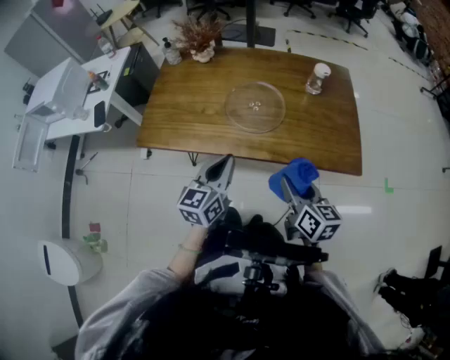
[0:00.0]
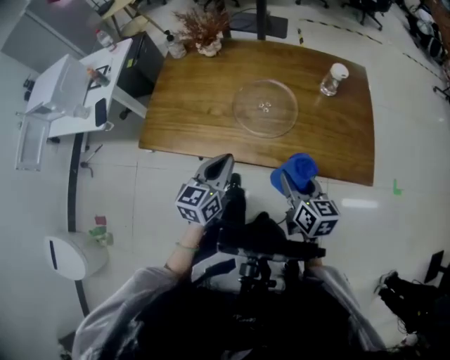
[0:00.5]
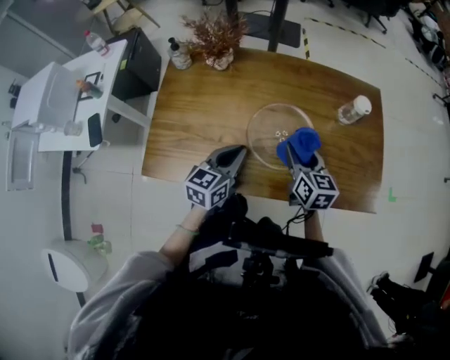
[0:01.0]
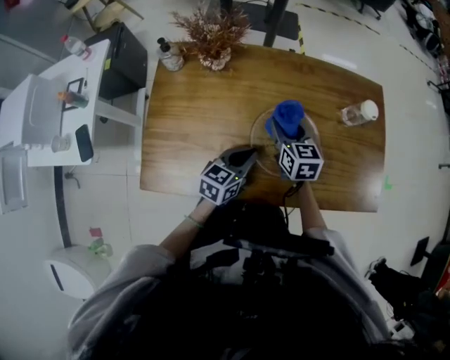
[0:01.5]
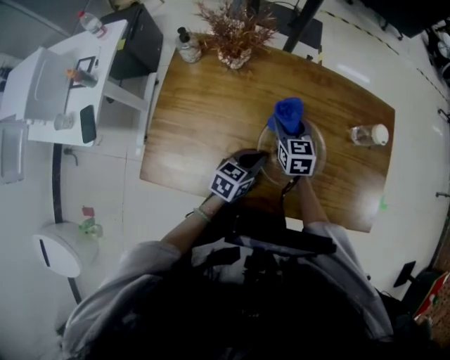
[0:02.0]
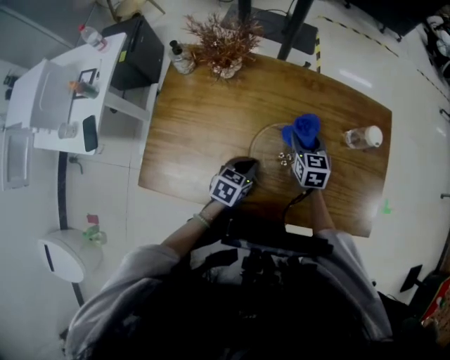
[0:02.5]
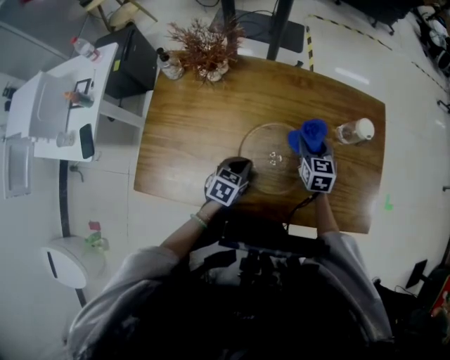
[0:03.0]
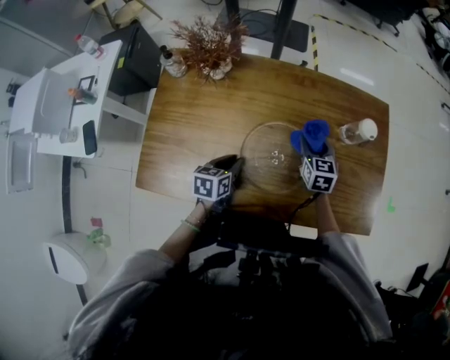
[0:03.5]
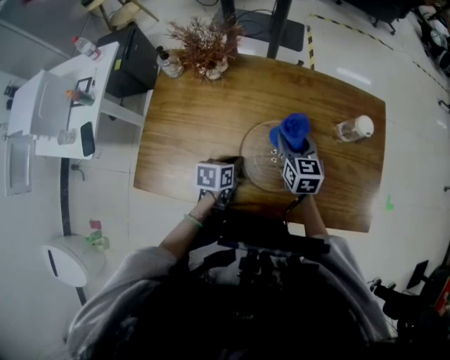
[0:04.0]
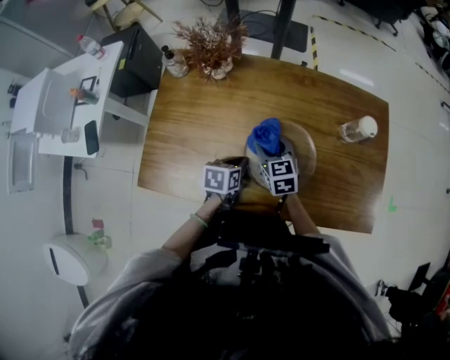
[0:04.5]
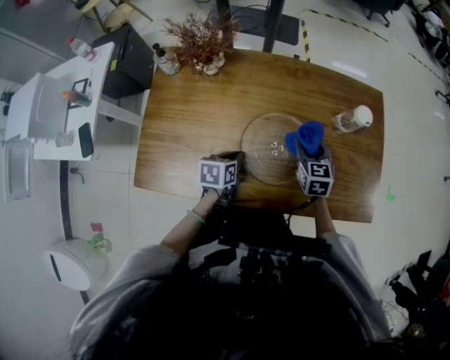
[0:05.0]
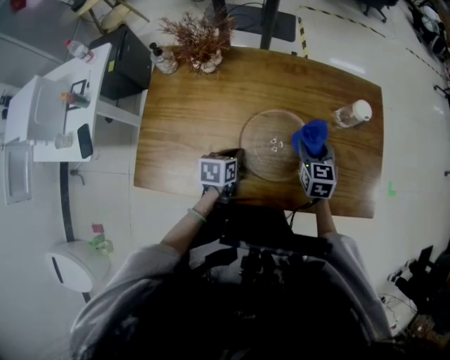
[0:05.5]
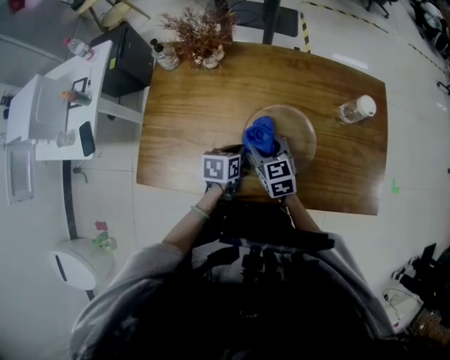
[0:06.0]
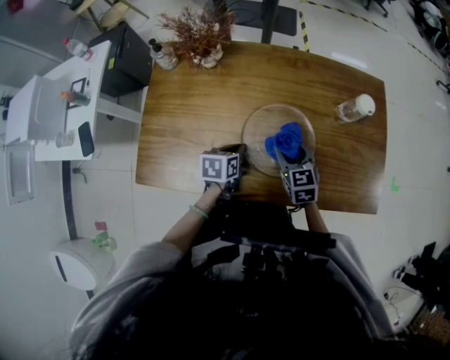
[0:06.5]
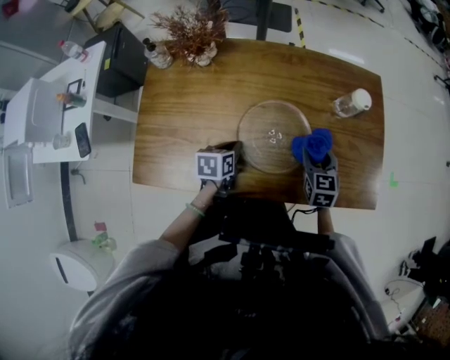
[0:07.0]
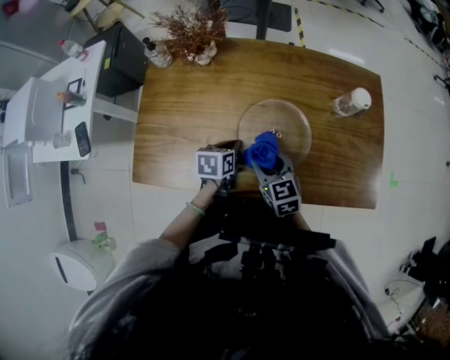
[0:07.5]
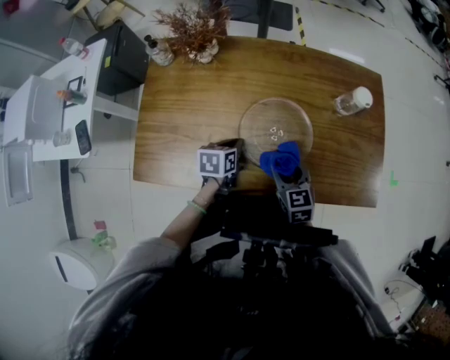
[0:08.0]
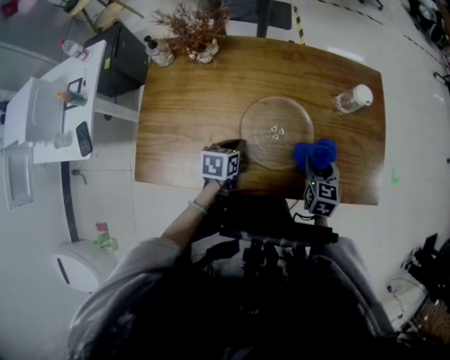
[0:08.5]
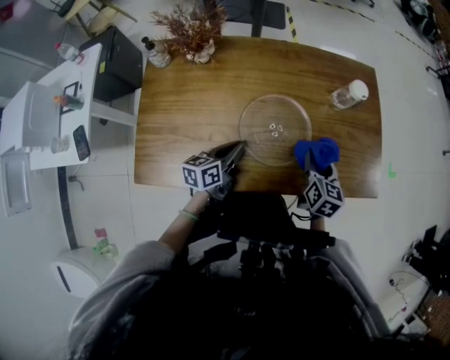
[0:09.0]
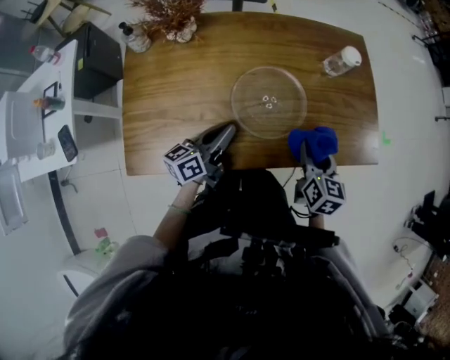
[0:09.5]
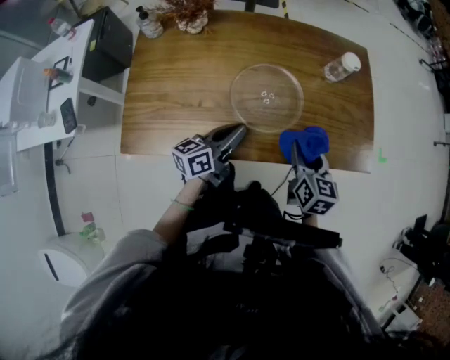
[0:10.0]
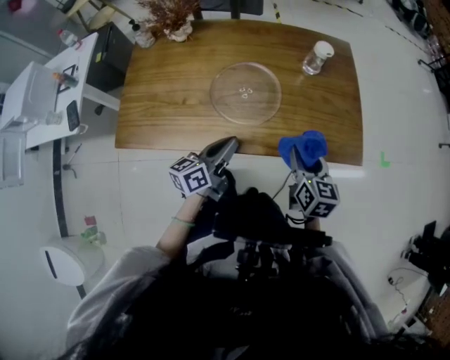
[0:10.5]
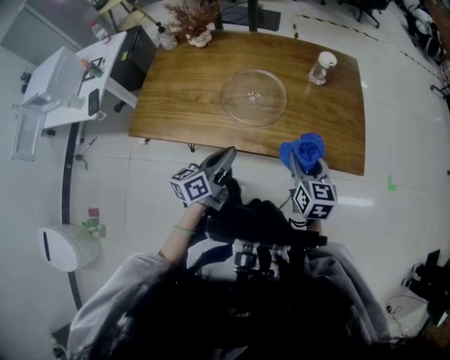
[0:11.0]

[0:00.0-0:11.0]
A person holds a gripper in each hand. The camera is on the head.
0:00.0 to 0:02.0: The left gripper heads forward and downward, covering approximately 30 cm, and rotates approximately 30 degrees; the right gripper shifts about 50 cm forward and to the left, and swivels approximately 30 degrees.
0:02.0 to 0:03.5: The left gripper swivels roughly 20 degrees, and opens up; the right gripper moves to the right, some 15 cm.
0:03.5 to 0:05.5: The right gripper heads backward, covering roughly 5 cm, and goes to the left and returns, about 15 cm each way.
0:05.5 to 0:07.5: The right gripper swings left and right, roughly 20 cm each way, with 2 reversals, and rotates roughly 20 degrees.
0:07.5 to 0:09.0: The right gripper goes approximately 15 cm to the right, and changes its angle by about 40 degrees. The left gripper moves roughly 5 cm, and swivels approximately 30 degrees.
0:09.0 to 0:11.0: The right gripper is displaced backward and to the right by roughly 20 cm, and turns by approximately 20 degrees. Meanwhile the left gripper goes roughly 25 cm backward, to the right and upward.

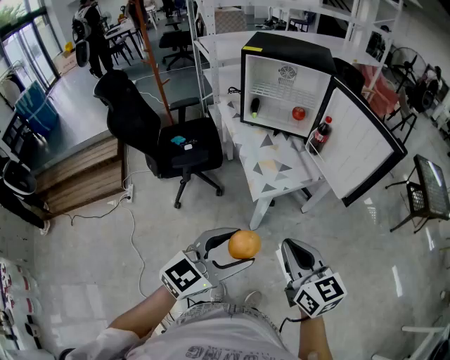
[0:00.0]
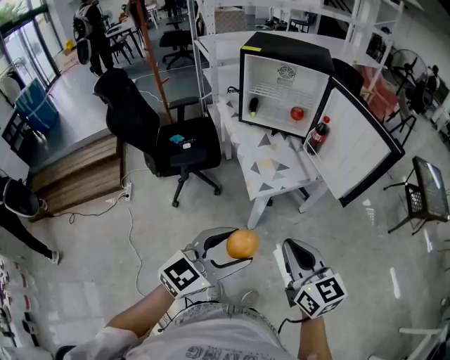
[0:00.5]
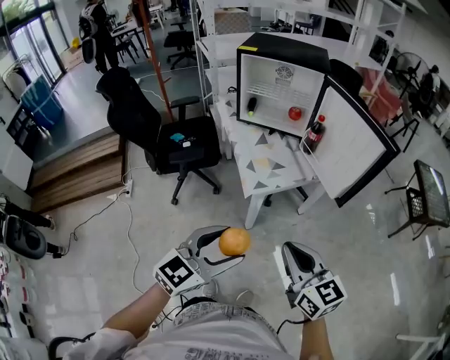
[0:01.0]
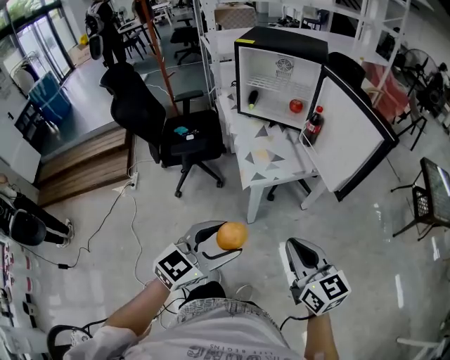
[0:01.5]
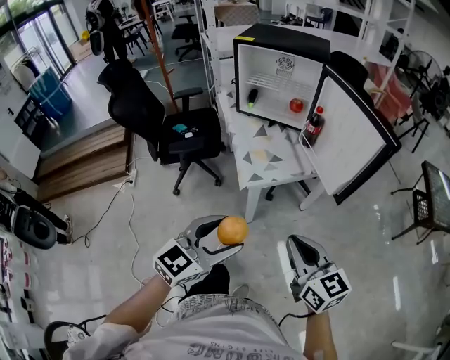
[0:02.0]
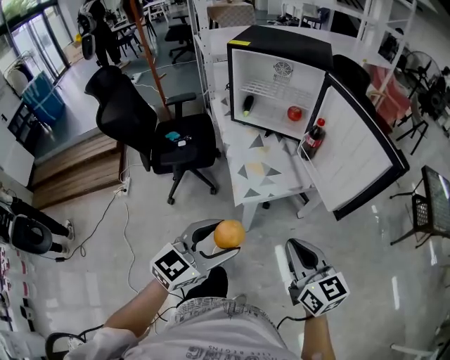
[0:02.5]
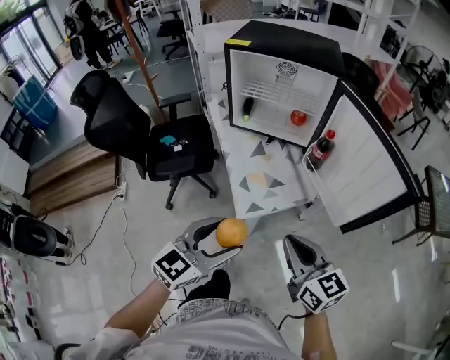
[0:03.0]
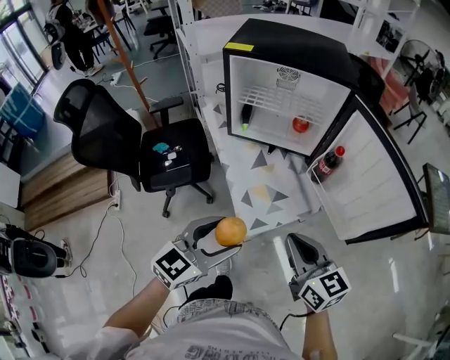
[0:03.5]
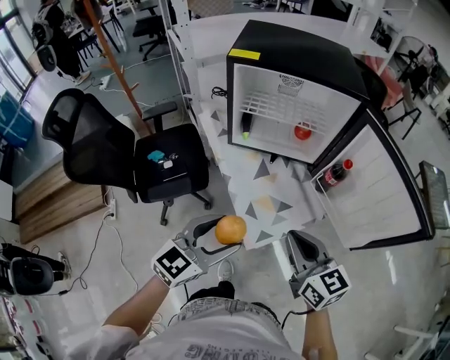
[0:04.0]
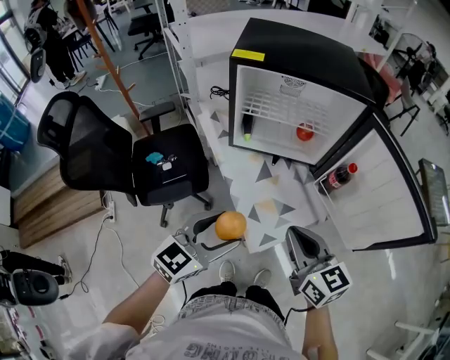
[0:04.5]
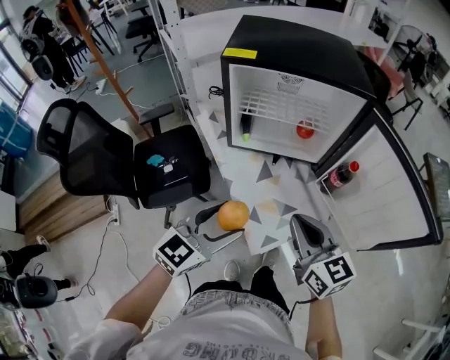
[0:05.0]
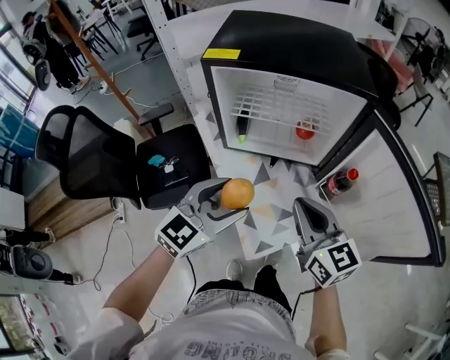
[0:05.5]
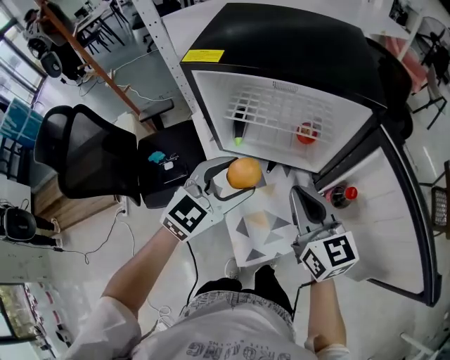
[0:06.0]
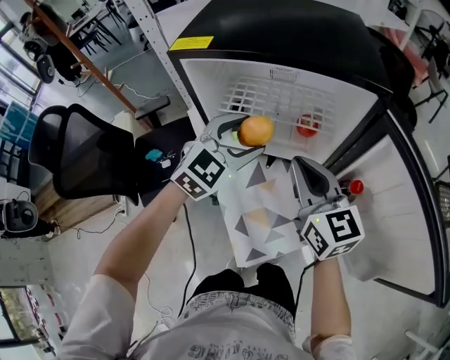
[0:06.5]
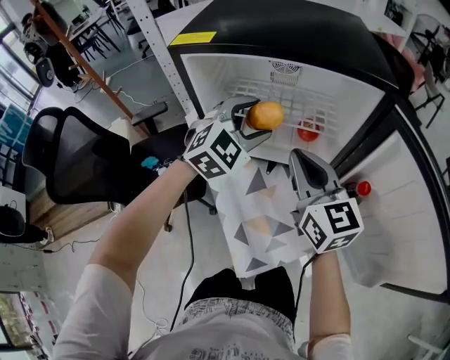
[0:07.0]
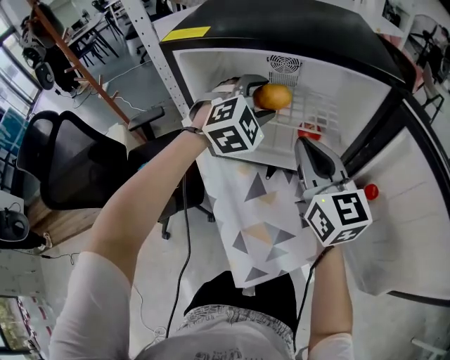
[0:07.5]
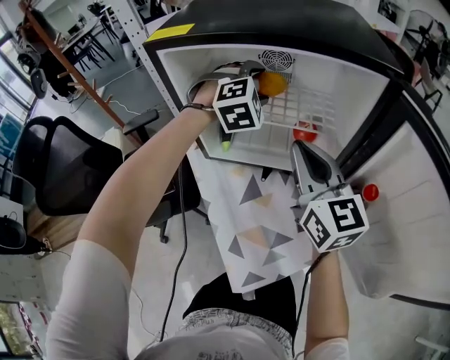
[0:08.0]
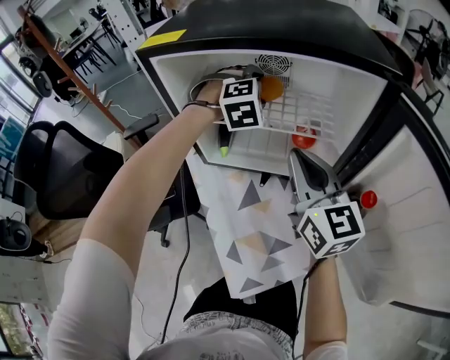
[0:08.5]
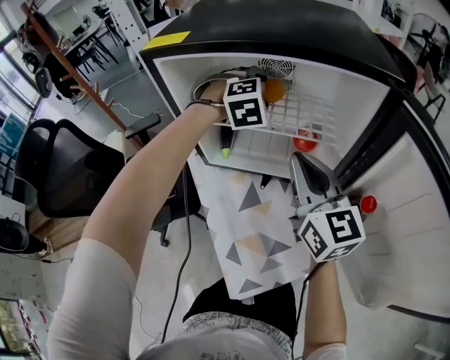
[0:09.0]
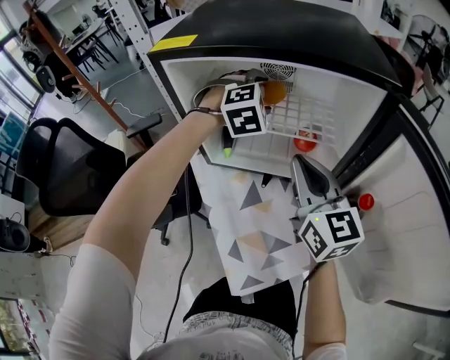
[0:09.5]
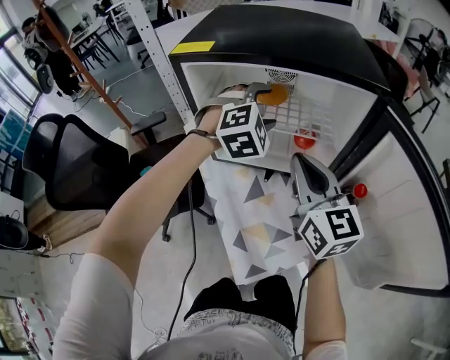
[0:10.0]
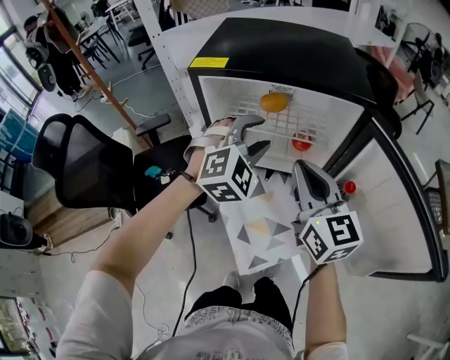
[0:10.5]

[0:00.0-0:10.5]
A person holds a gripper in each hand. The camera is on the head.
0:00.0 to 0:02.0: The left gripper goes some 5 cm to the right, while the right gripper is displaced to the right by approximately 10 cm.
0:02.0 to 0:04.0: Both grippers move forward and to the left, about 30 cm.
0:04.0 to 0:06.5: Both grippers move forward, roughly 30 cm. The left gripper swivels approximately 30 degrees.
0:06.5 to 0:08.5: The left gripper travels forward by about 20 cm, and swivels roughly 40 degrees. Meanwhile the right gripper goes roughly 5 cm forward.
0:08.5 to 0:10.5: The right gripper is displaced upward and backward by about 10 cm. Meanwhile the left gripper is displaced backward and upward by roughly 20 cm, and rotates about 20 degrees.

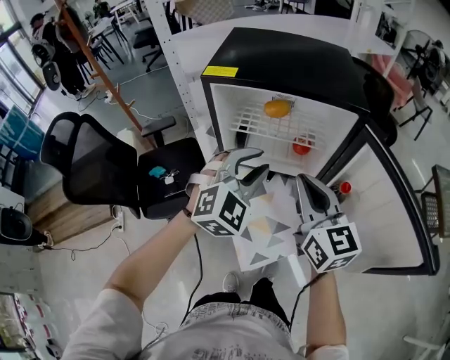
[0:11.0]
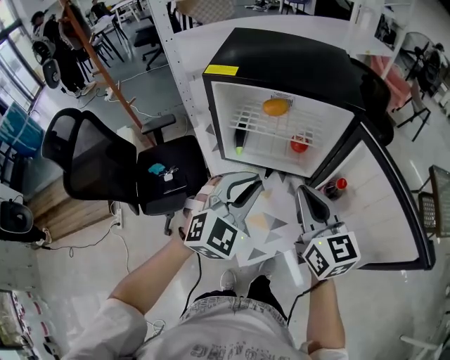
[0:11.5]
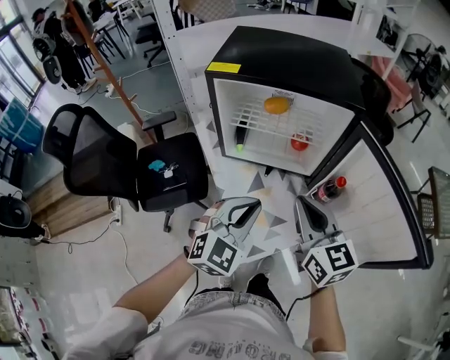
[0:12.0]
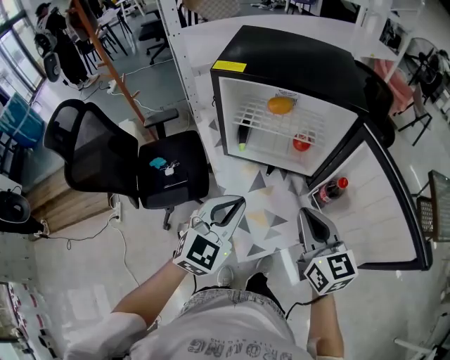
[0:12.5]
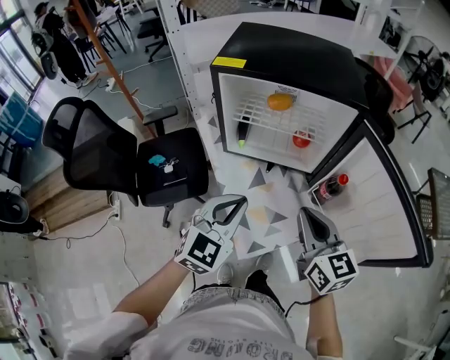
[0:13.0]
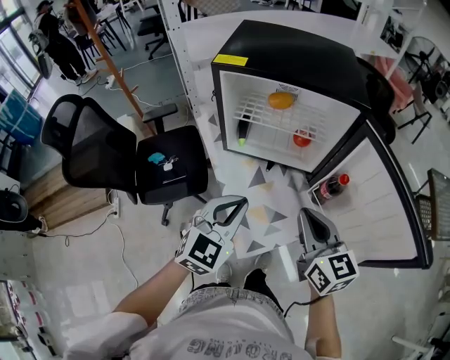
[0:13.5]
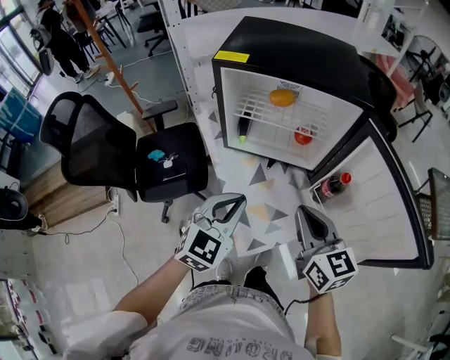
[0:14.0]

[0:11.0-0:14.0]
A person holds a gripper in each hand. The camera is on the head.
0:11.0 to 0:12.5: The grippers both shift backward by approximately 10 cm. The left gripper turns by about 20 degrees, and closes up.
0:12.5 to 0:14.0: There are only small adjustments of the grippers.

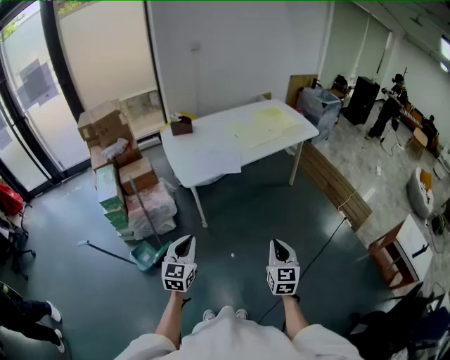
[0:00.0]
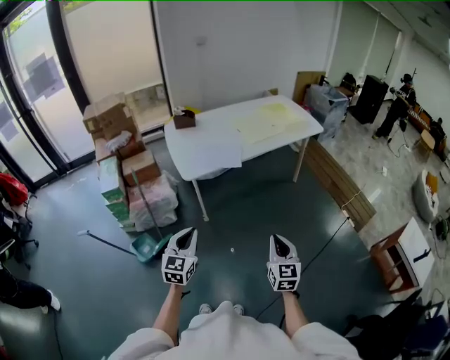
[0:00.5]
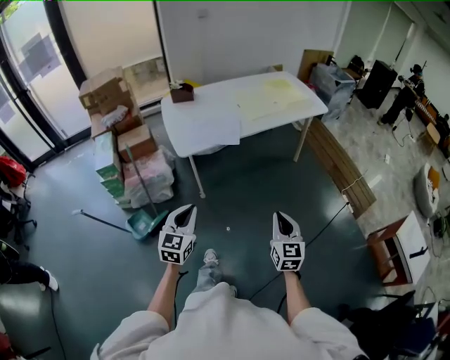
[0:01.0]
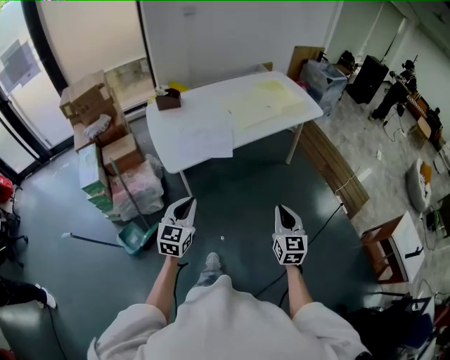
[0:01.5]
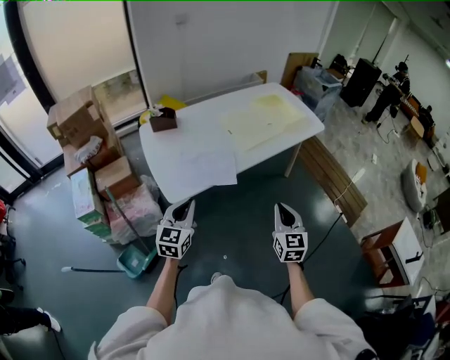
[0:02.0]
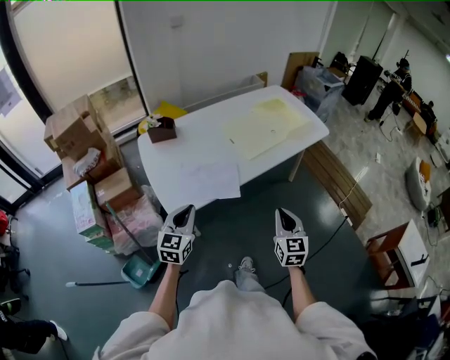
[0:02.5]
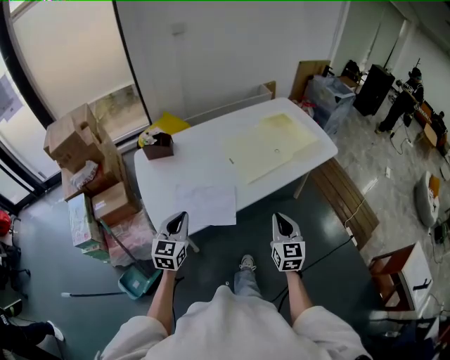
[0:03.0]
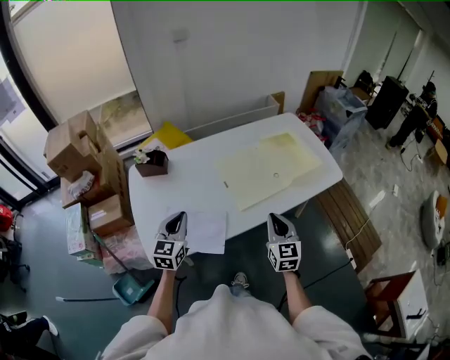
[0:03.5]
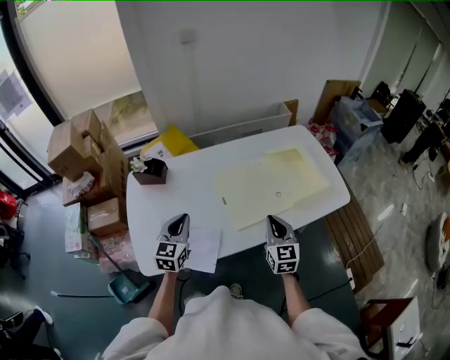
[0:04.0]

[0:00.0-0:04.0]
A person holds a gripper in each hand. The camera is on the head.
0:00.0 to 0:02.0: Both grippers travel together forward, some 30 cm.
0:02.0 to 0:04.0: The grippers both shift forward by some 40 cm.
